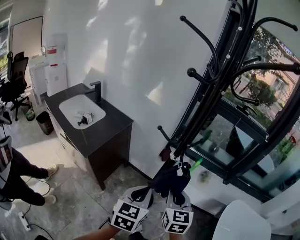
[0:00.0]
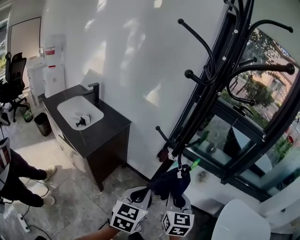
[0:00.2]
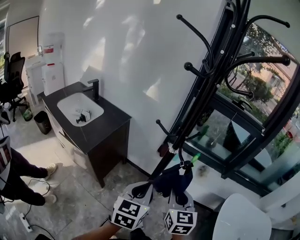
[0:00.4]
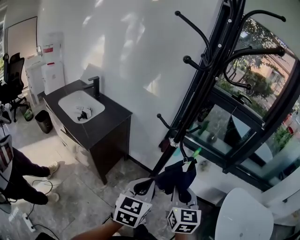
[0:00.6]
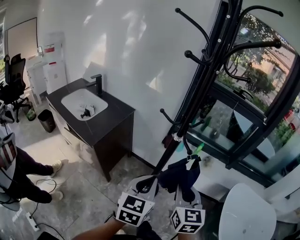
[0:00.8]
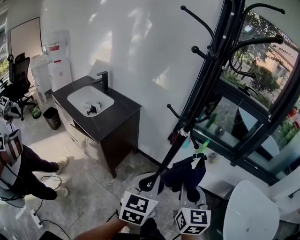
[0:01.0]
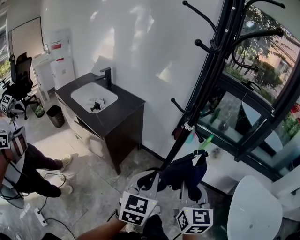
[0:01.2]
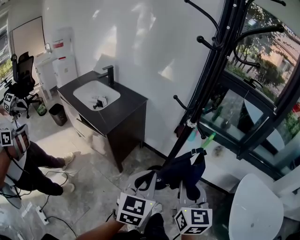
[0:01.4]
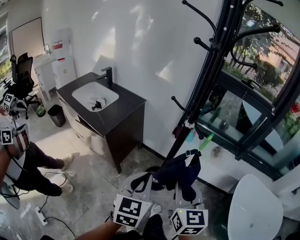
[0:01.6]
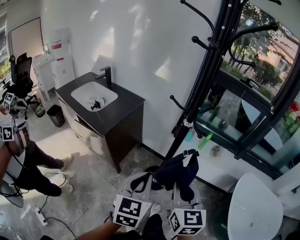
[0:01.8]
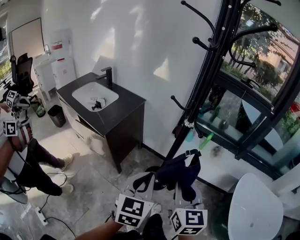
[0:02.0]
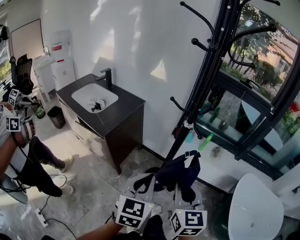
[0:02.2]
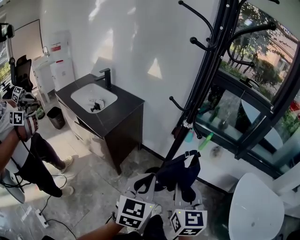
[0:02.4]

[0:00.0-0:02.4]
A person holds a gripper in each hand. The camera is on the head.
0:00.0 to 0:01.2: The two grippers go some 10 cm backward.
0:01.2 to 0:02.4: The grippers make only small movements.

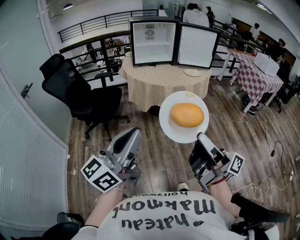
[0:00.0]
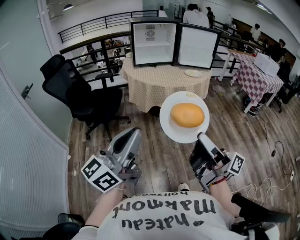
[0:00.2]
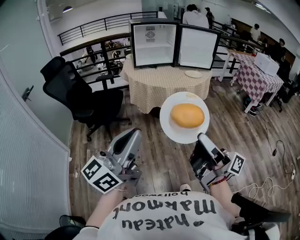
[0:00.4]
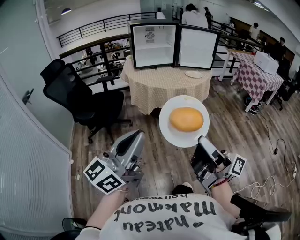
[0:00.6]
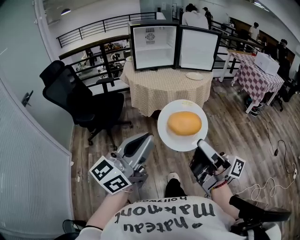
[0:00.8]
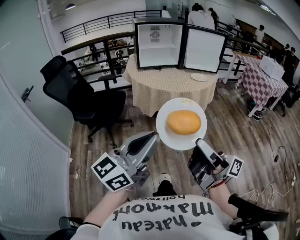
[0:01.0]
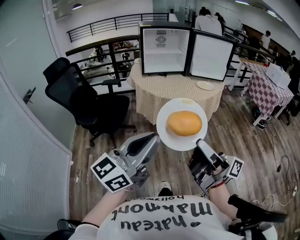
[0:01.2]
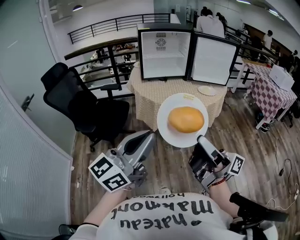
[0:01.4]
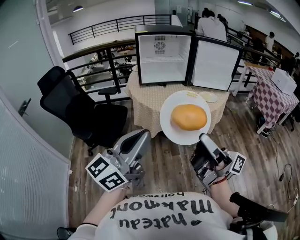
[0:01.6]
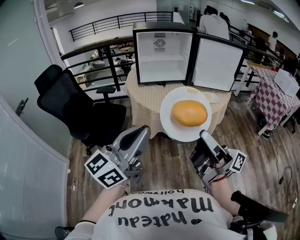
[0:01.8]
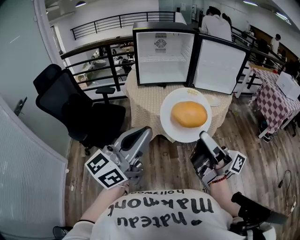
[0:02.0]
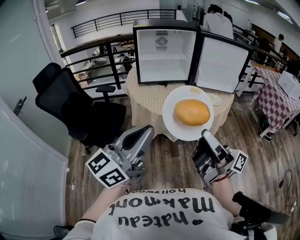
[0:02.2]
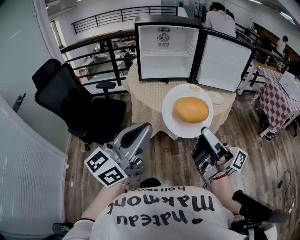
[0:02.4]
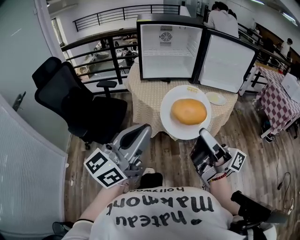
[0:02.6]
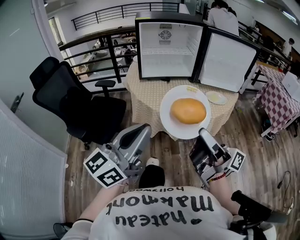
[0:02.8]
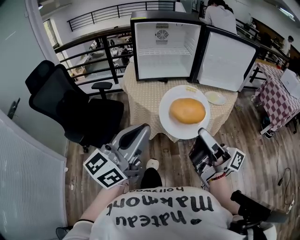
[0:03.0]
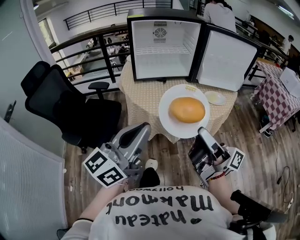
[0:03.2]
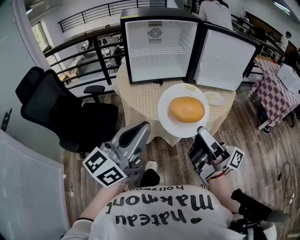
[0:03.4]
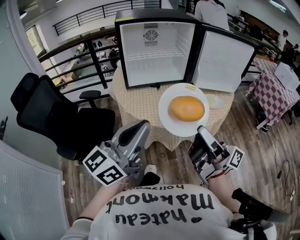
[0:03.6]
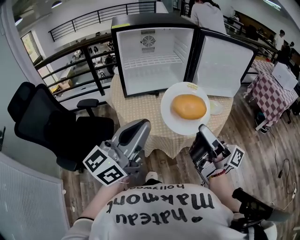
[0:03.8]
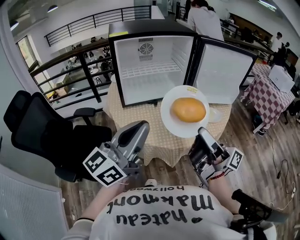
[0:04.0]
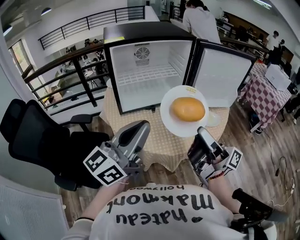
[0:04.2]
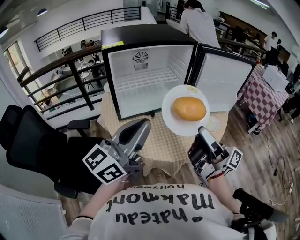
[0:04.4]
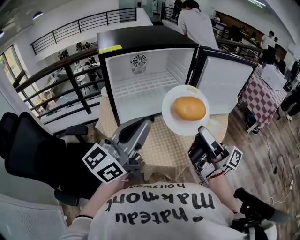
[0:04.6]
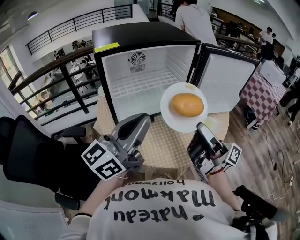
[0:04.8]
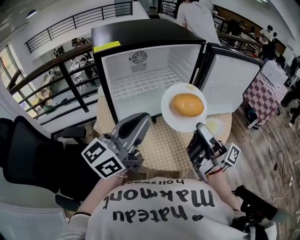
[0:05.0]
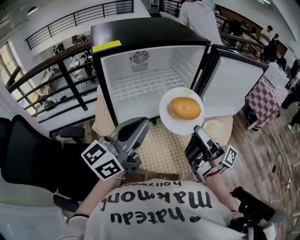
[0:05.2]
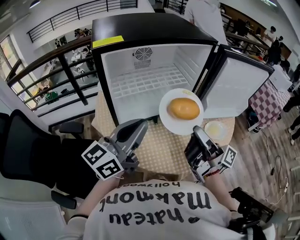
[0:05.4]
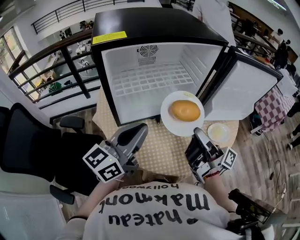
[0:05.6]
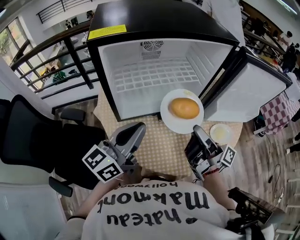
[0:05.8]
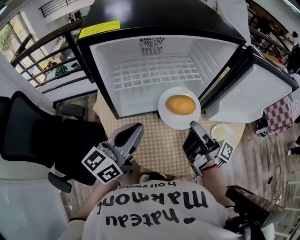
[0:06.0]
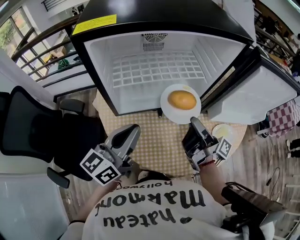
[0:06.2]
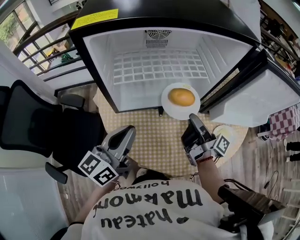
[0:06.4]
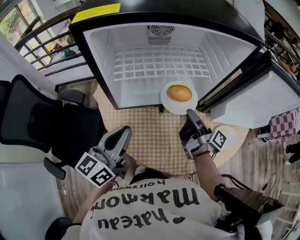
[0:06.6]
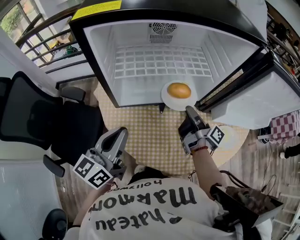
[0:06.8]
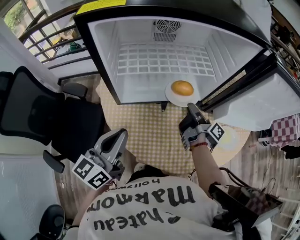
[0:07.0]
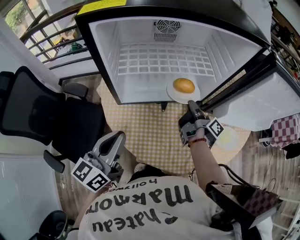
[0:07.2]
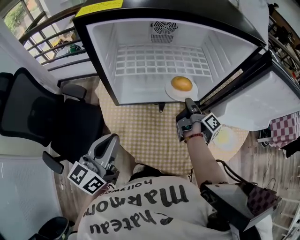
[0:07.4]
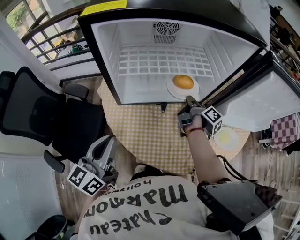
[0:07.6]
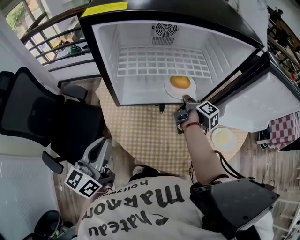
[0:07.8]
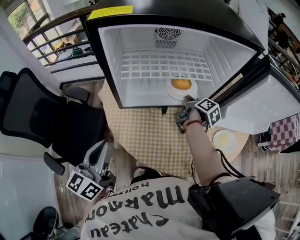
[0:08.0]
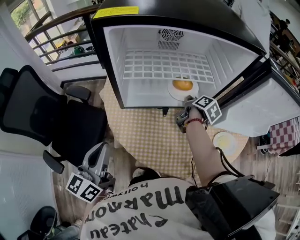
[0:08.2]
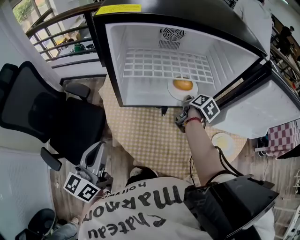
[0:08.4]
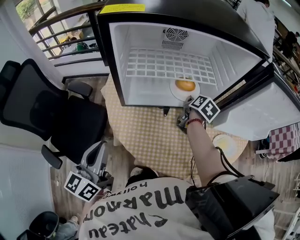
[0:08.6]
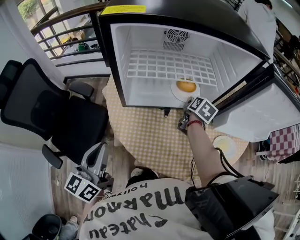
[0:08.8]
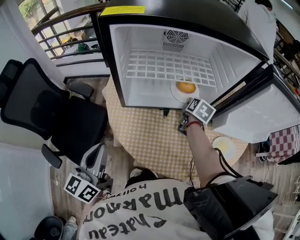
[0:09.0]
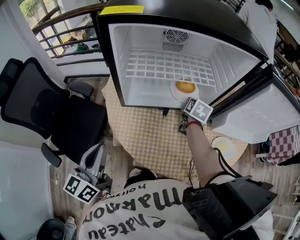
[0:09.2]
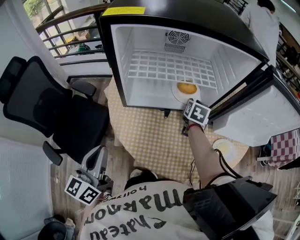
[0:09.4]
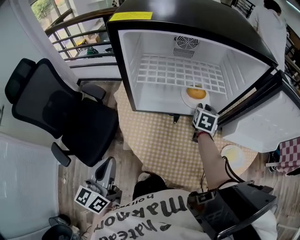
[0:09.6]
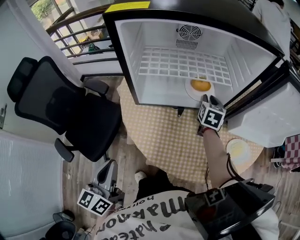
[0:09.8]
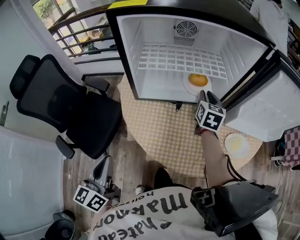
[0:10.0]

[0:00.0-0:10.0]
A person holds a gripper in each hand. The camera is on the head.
0:00.0 to 0:01.4: The grippers both shift forward by some 20 cm.
0:01.4 to 0:02.8: The two grippers go about 20 cm forward.
0:02.8 to 0:04.2: The two grippers go approximately 25 cm forward.
0:04.2 to 0:05.8: The grippers both shift forward and downward by some 20 cm.
0:05.8 to 0:07.2: The right gripper heads downward and forward, covering roughly 20 cm, and changes its angle by some 30 degrees, while the left gripper heads downward, covering some 5 cm, and changes its angle by approximately 20 degrees.
0:07.2 to 0:08.6: The right gripper travels forward by approximately 5 cm, and angles its fingers downward, by about 30 degrees. The left gripper shifts roughly 10 cm to the left and backward.
0:08.6 to 0:10.0: The right gripper moves upward, about 5 cm, and turns by roughly 40 degrees; the left gripper is displaced backward by about 10 cm.

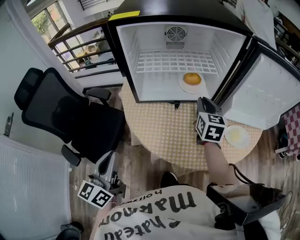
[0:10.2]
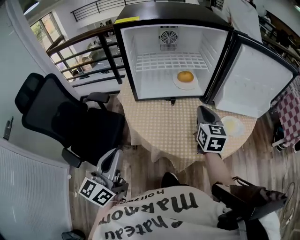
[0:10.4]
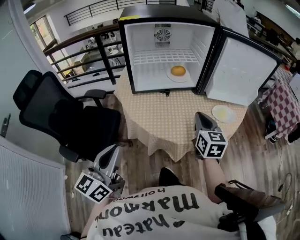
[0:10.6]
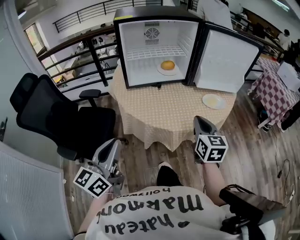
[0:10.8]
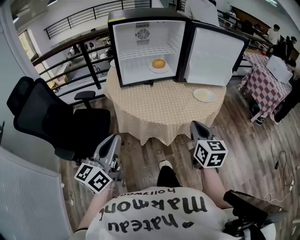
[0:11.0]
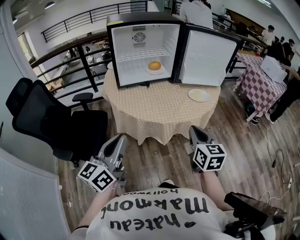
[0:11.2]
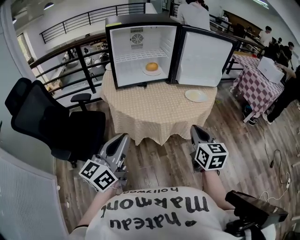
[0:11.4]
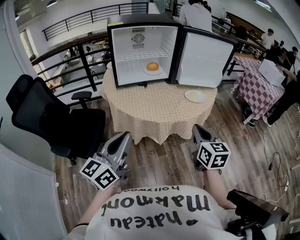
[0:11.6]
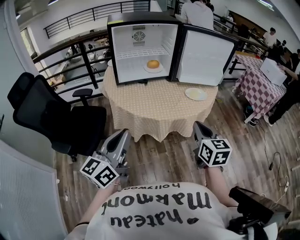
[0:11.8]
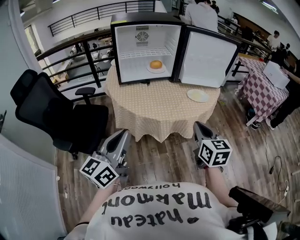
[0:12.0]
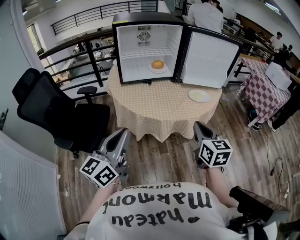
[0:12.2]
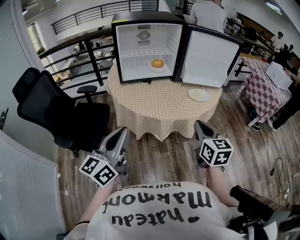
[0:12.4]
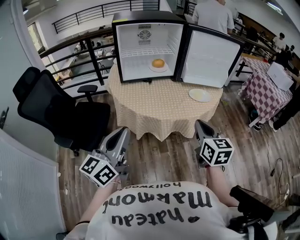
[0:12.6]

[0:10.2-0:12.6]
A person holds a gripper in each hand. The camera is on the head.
0:10.2 to 0:11.4: The left gripper travels backward and to the right by about 20 cm, and turns by some 30 degrees. Meanwhile the right gripper goes about 40 cm backward.
0:11.4 to 0:12.6: The grippers make only small movements.

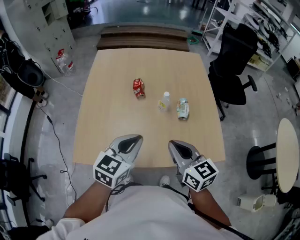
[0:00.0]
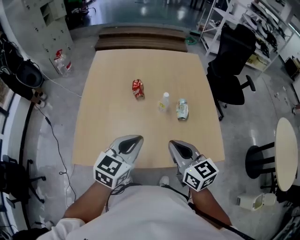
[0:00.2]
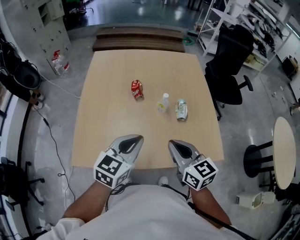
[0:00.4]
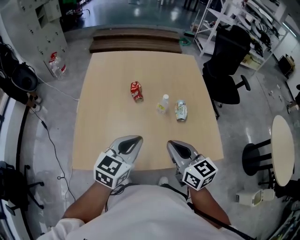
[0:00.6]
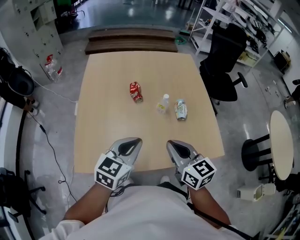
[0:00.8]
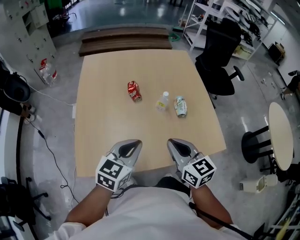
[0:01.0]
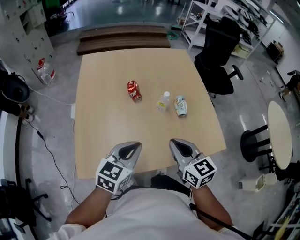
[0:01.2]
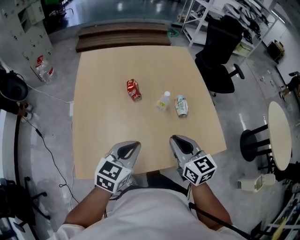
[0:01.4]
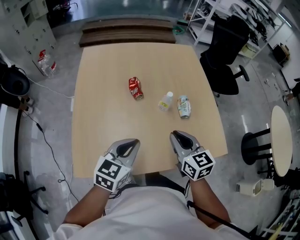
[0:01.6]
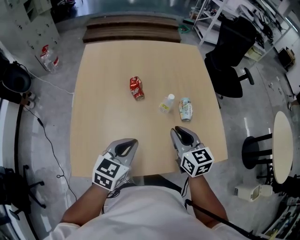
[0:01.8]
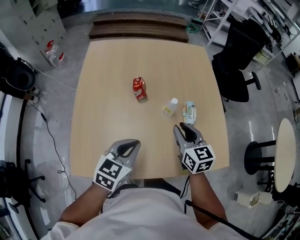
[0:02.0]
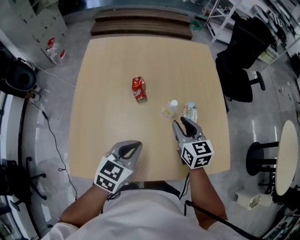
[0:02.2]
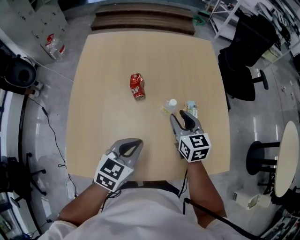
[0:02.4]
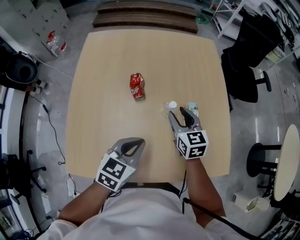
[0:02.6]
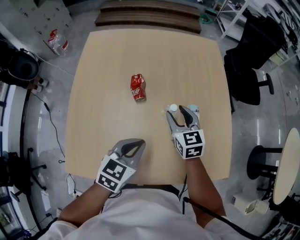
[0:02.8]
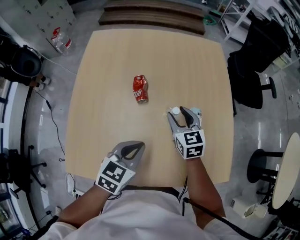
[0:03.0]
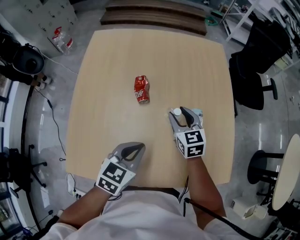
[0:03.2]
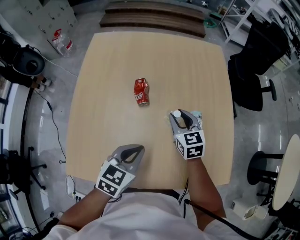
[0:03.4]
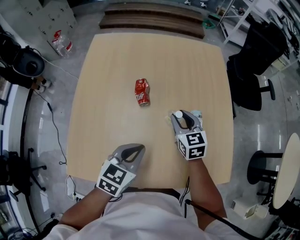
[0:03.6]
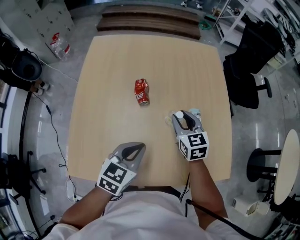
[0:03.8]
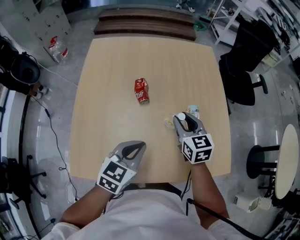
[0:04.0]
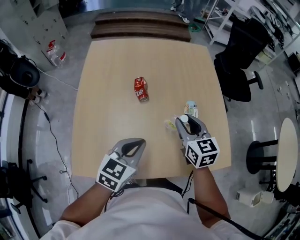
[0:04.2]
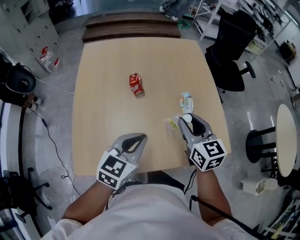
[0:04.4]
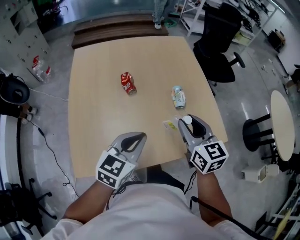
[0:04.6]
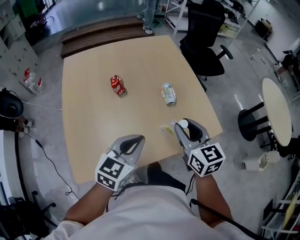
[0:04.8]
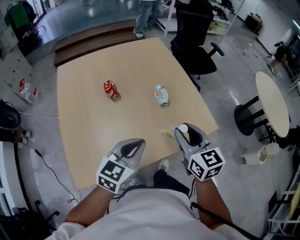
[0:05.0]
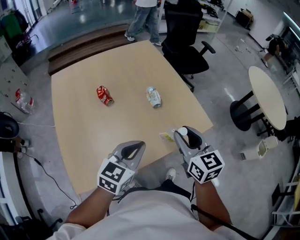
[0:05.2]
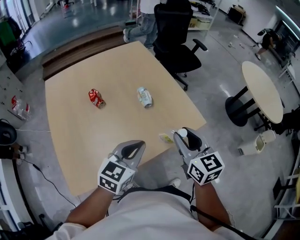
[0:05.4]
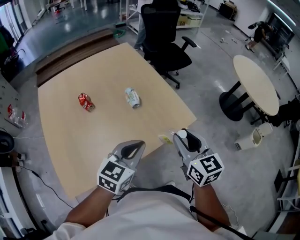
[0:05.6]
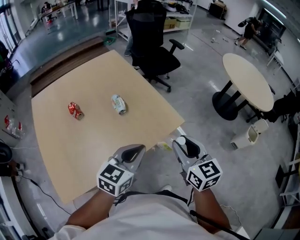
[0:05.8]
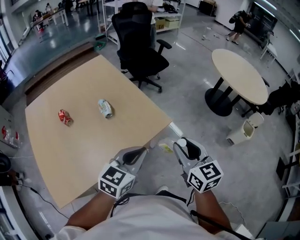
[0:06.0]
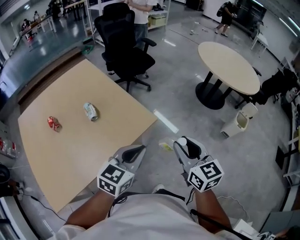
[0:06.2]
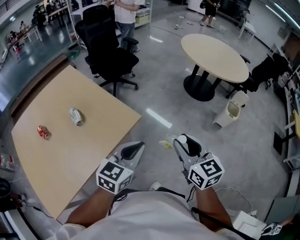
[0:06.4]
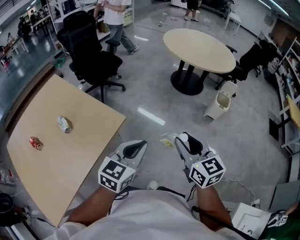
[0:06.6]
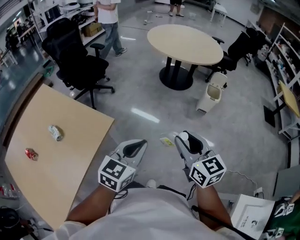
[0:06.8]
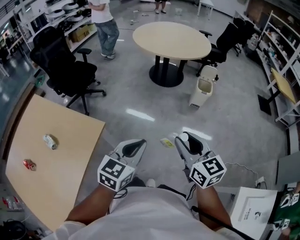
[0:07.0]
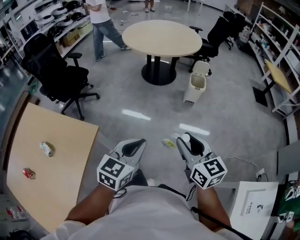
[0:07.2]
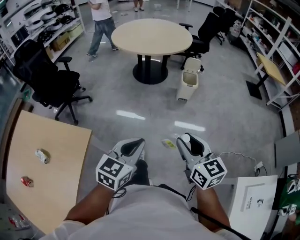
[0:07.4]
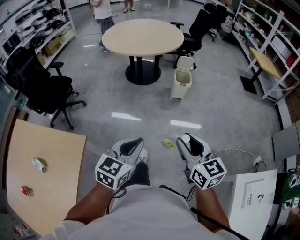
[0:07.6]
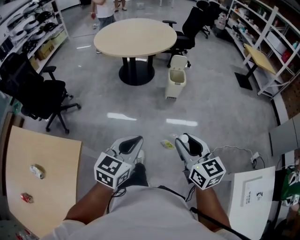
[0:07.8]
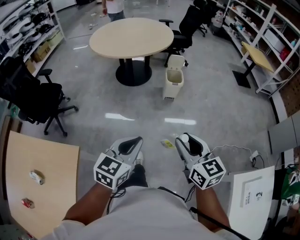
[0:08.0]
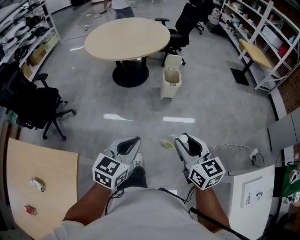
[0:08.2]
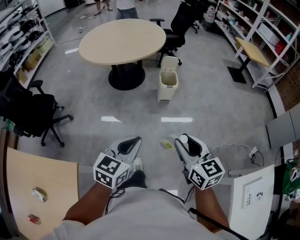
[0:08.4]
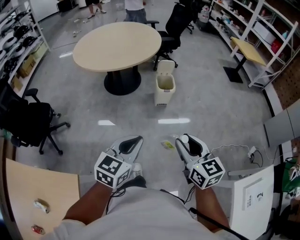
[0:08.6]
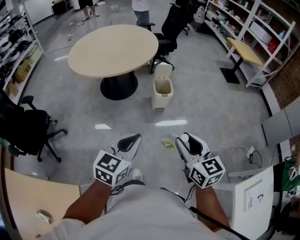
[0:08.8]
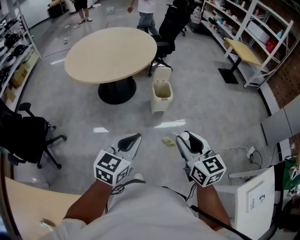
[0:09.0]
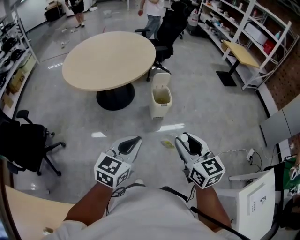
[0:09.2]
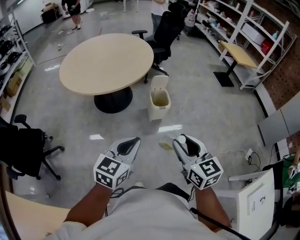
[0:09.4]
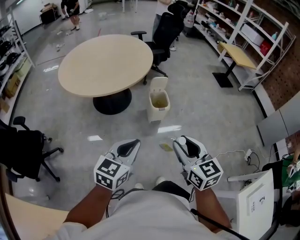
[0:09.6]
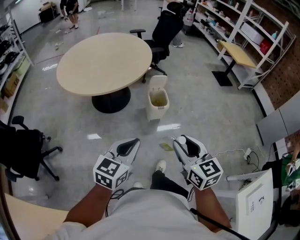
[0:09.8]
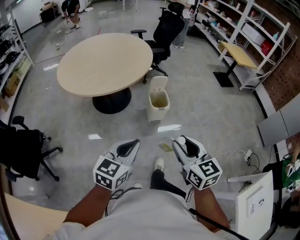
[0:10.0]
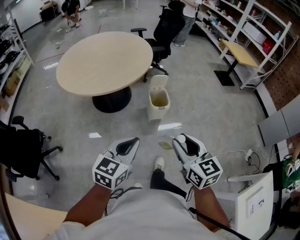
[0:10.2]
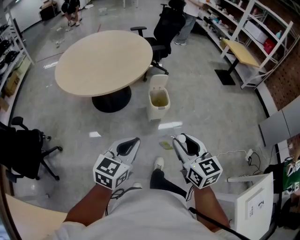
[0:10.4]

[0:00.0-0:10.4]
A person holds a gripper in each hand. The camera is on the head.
0:00.0 to 0:01.4: The left gripper shifts by approximately 5 cm.
0:01.4 to 0:03.0: The left gripper moves forward and downward, approximately 10 cm. The right gripper travels forward and downward by roughly 25 cm, and opens.
0:03.0 to 0:04.4: The right gripper travels backward and upward by roughly 20 cm. Meanwhile the left gripper travels upward by approximately 5 cm.
0:04.4 to 0:06.0: The left gripper changes place by some 30 cm, and rotates approximately 30 degrees. Meanwhile the right gripper changes place by roughly 35 cm, and rotates about 30 degrees.
0:06.0 to 0:07.4: The left gripper shifts by approximately 35 cm, and swivels roughly 40 degrees. Meanwhile the right gripper moves about 35 cm, and turns by approximately 40 degrees.
0:07.4 to 0:09.0: Both grippers move forward, some 25 cm.
0:09.0 to 0:10.4: The two grippers go roughly 10 cm forward.
